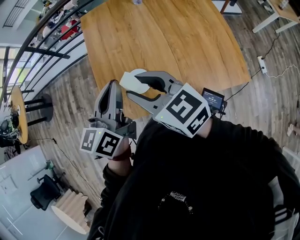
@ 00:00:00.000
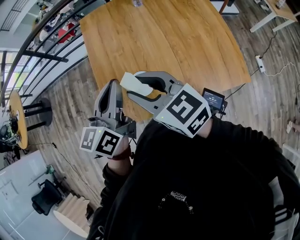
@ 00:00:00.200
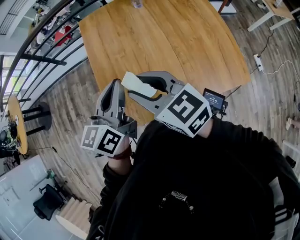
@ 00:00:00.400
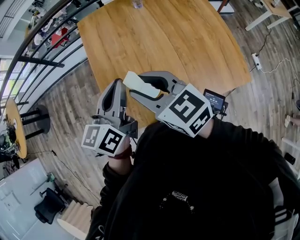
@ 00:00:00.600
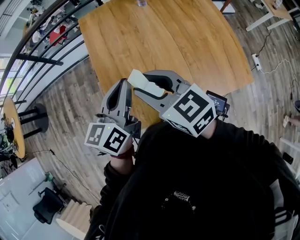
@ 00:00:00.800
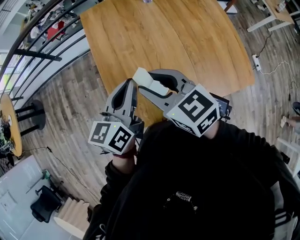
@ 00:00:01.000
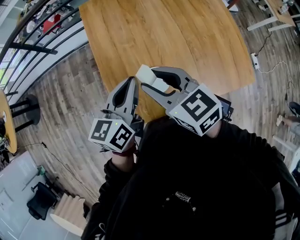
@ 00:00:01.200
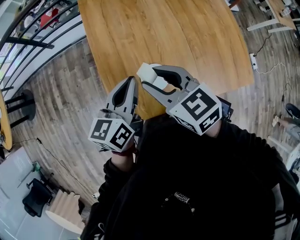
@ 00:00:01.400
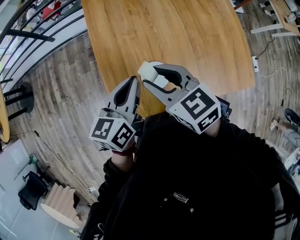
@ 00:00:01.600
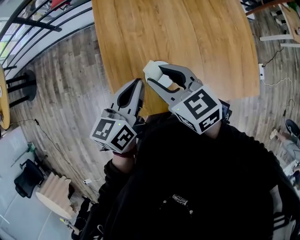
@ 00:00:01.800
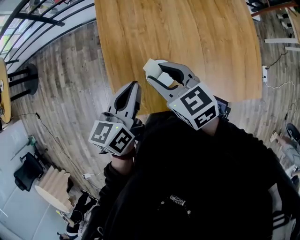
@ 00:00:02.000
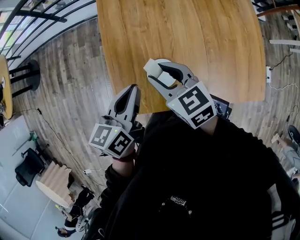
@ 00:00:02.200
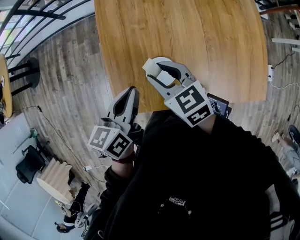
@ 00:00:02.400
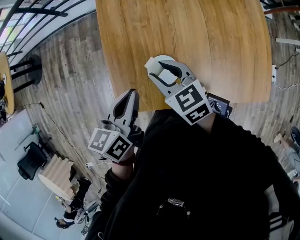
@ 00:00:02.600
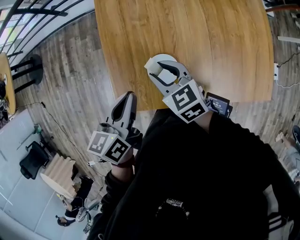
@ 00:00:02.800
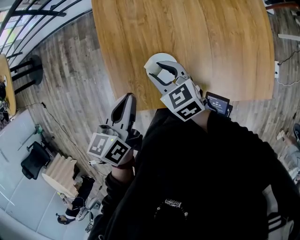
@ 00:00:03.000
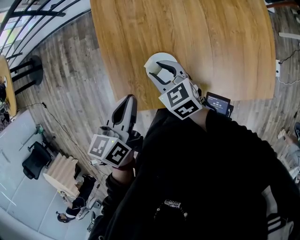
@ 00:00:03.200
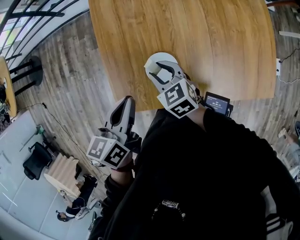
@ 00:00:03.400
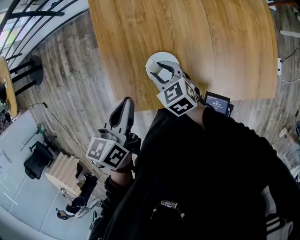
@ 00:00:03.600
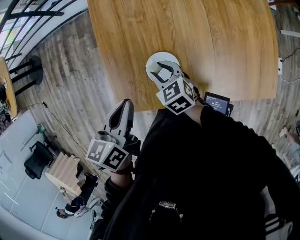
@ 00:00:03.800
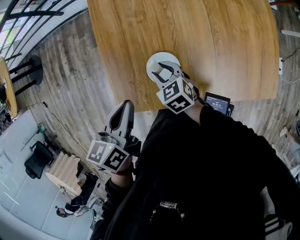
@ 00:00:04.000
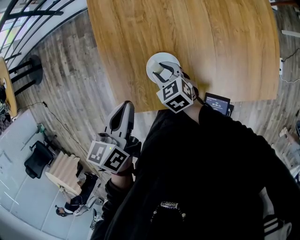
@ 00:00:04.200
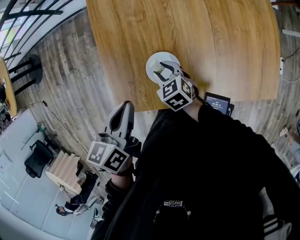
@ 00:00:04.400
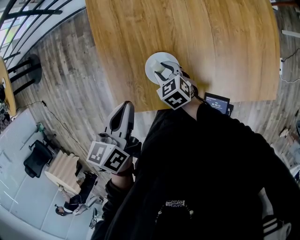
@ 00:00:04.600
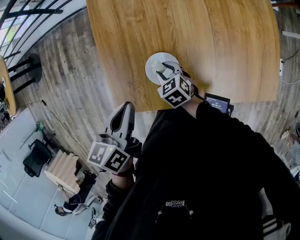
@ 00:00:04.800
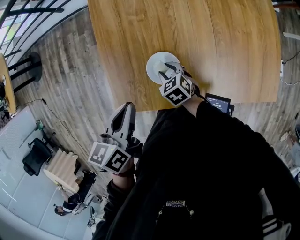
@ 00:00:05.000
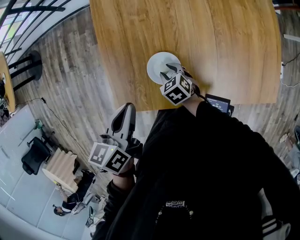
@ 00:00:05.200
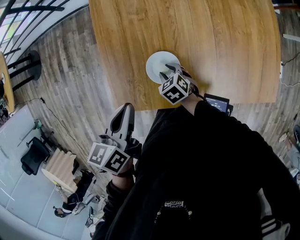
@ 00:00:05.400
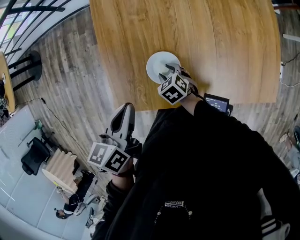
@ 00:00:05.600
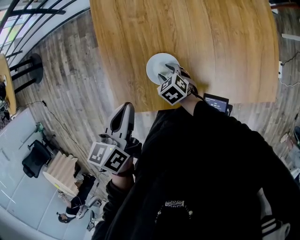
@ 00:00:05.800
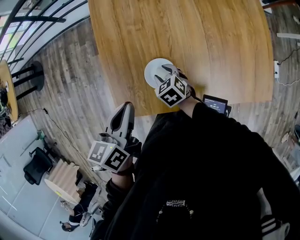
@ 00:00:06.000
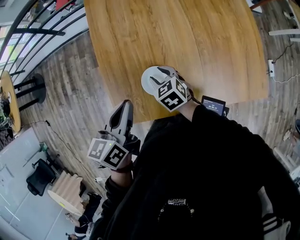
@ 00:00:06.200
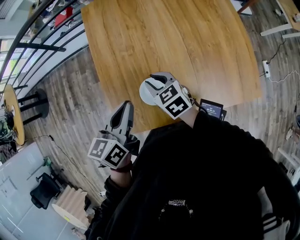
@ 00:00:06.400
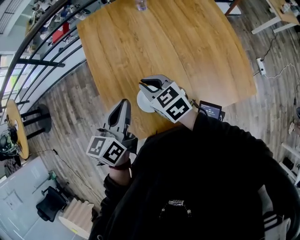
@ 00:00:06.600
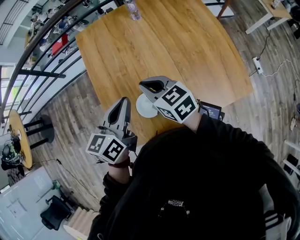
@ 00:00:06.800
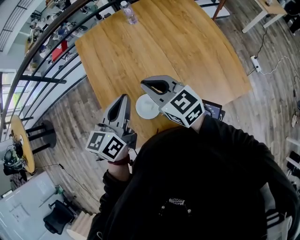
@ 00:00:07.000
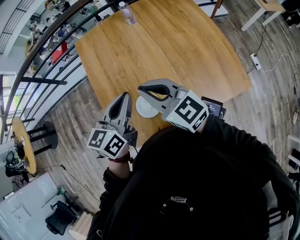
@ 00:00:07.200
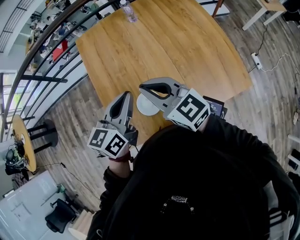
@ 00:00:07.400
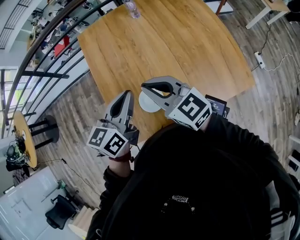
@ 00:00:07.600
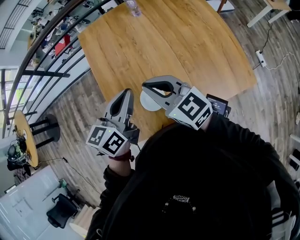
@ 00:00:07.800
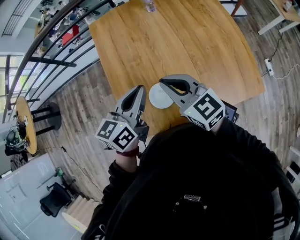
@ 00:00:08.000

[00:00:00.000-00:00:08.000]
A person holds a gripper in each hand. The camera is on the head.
00:00:00.000 to 00:00:01.600: The right gripper moves forward, downward and to the left, approximately 15 cm, while the left gripper goes roughly 15 cm downward, to the left and forward.
00:00:01.600 to 00:00:03.200: The right gripper shifts roughly 15 cm downward, while the left gripper goes some 5 cm downward.
00:00:03.200 to 00:00:04.800: The right gripper travels downward by approximately 15 cm.
00:00:04.800 to 00:00:06.400: The left gripper heads upward, covering approximately 5 cm, while the right gripper travels upward by roughly 15 cm.
00:00:06.400 to 00:00:08.000: The right gripper heads upward and to the right, covering roughly 20 cm, rotates about 30 degrees, and closes. The left gripper goes roughly 10 cm to the right.

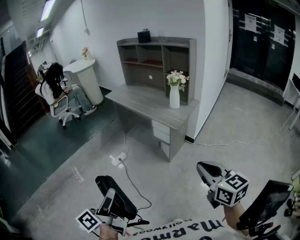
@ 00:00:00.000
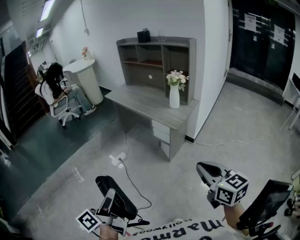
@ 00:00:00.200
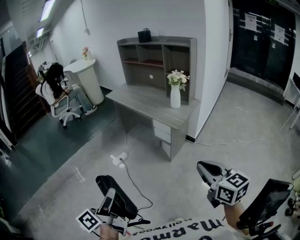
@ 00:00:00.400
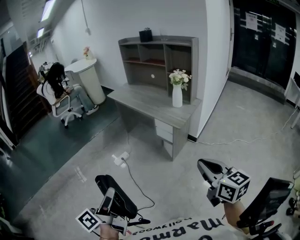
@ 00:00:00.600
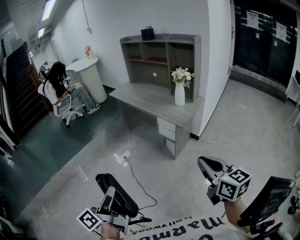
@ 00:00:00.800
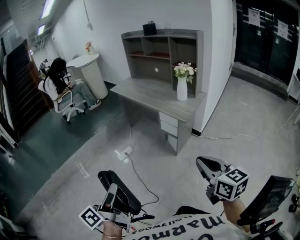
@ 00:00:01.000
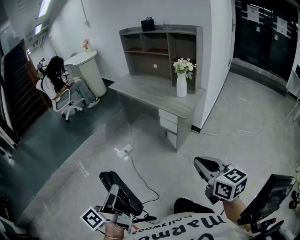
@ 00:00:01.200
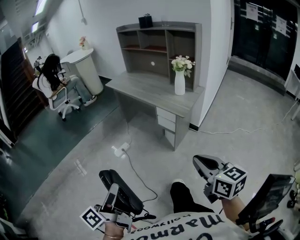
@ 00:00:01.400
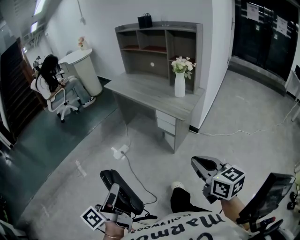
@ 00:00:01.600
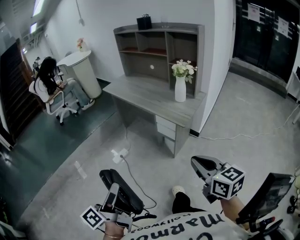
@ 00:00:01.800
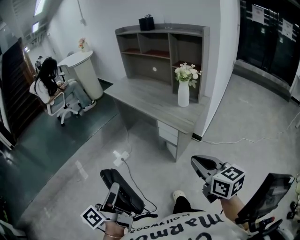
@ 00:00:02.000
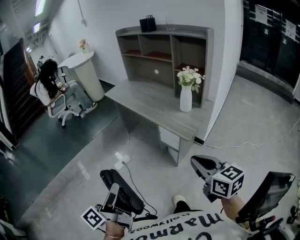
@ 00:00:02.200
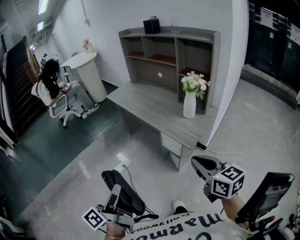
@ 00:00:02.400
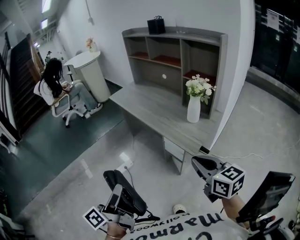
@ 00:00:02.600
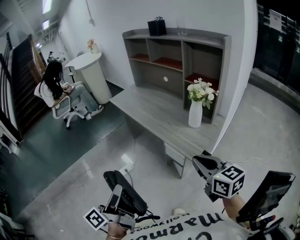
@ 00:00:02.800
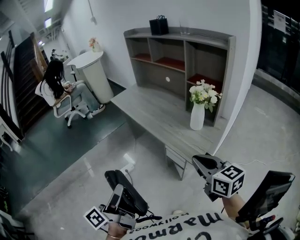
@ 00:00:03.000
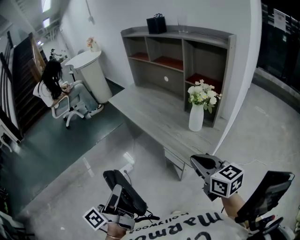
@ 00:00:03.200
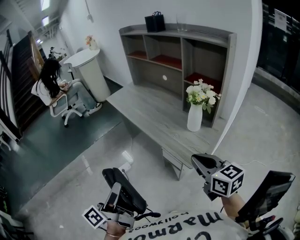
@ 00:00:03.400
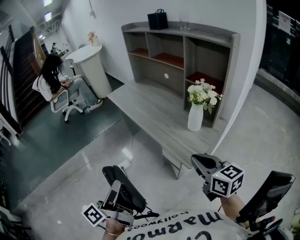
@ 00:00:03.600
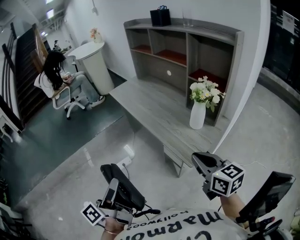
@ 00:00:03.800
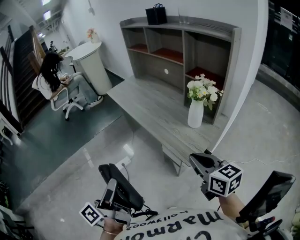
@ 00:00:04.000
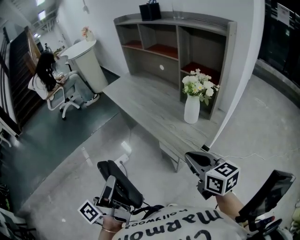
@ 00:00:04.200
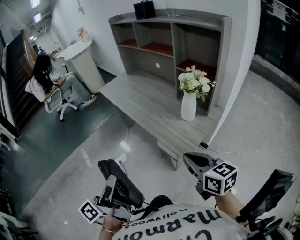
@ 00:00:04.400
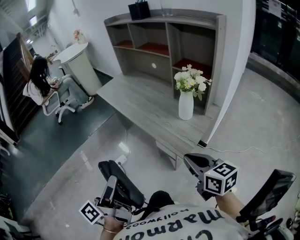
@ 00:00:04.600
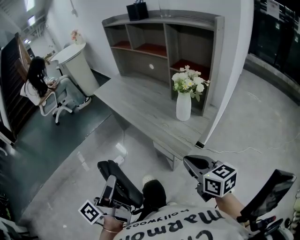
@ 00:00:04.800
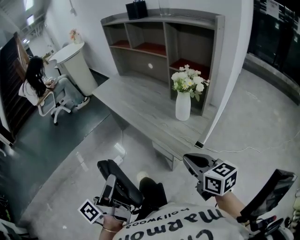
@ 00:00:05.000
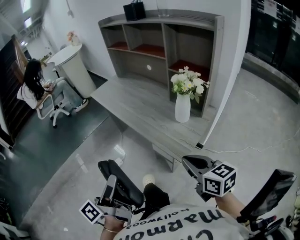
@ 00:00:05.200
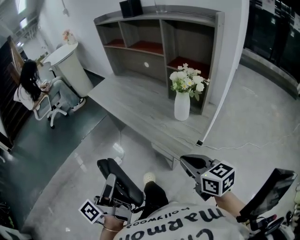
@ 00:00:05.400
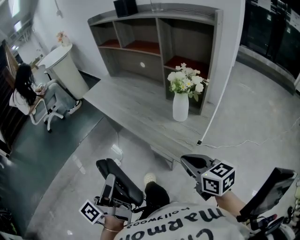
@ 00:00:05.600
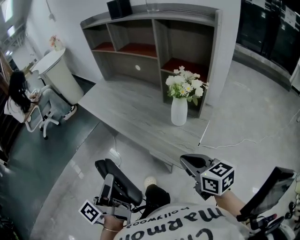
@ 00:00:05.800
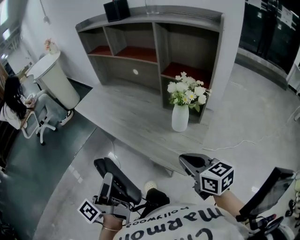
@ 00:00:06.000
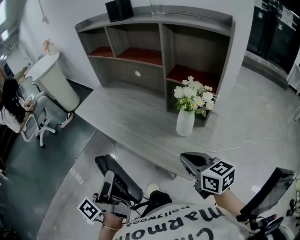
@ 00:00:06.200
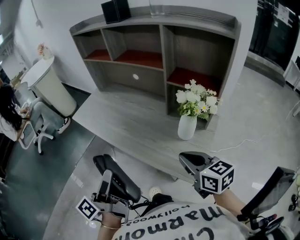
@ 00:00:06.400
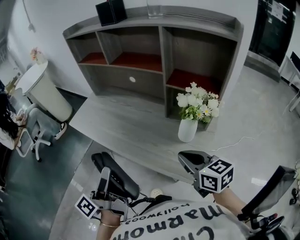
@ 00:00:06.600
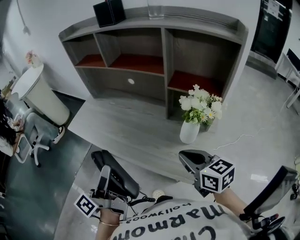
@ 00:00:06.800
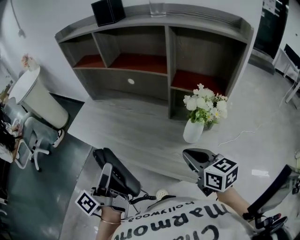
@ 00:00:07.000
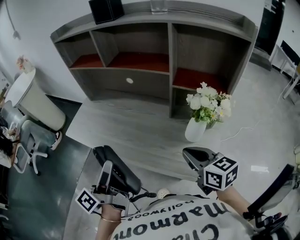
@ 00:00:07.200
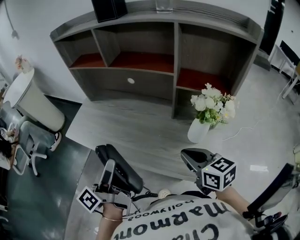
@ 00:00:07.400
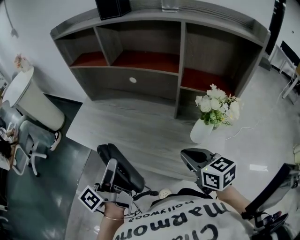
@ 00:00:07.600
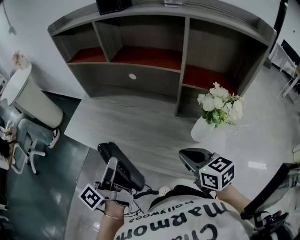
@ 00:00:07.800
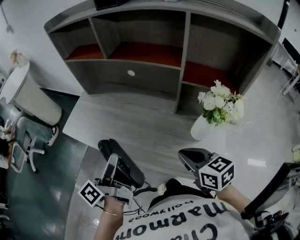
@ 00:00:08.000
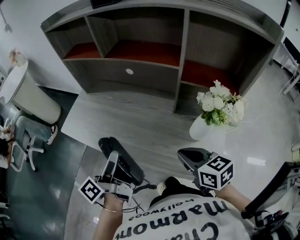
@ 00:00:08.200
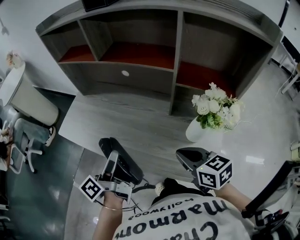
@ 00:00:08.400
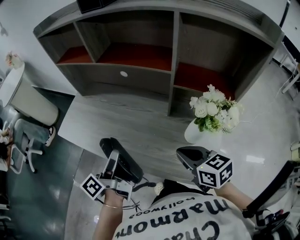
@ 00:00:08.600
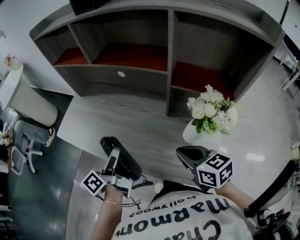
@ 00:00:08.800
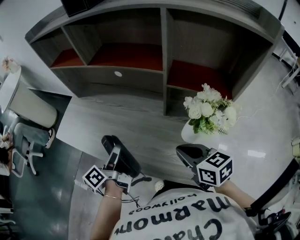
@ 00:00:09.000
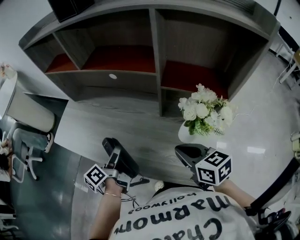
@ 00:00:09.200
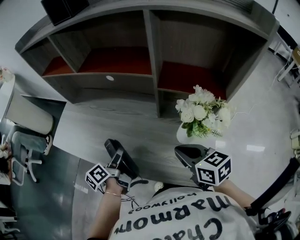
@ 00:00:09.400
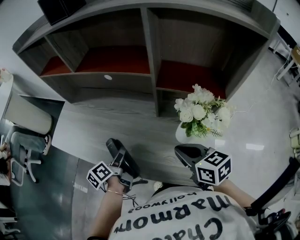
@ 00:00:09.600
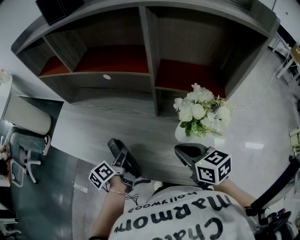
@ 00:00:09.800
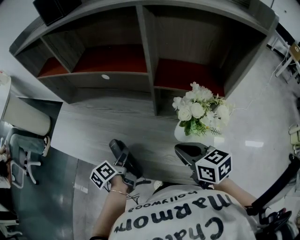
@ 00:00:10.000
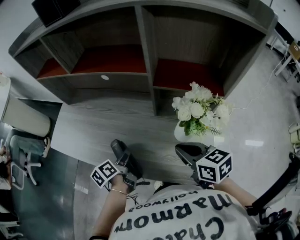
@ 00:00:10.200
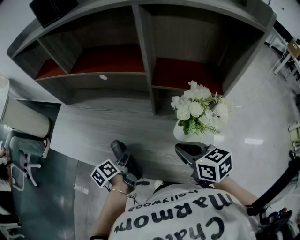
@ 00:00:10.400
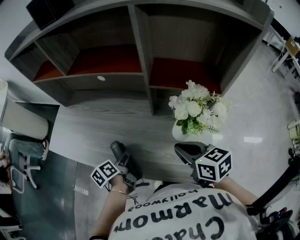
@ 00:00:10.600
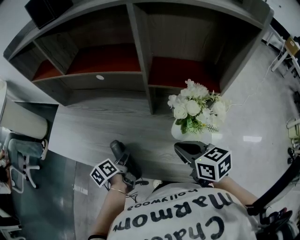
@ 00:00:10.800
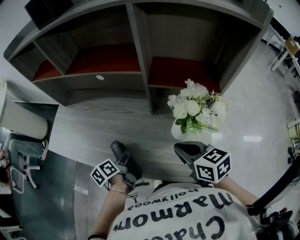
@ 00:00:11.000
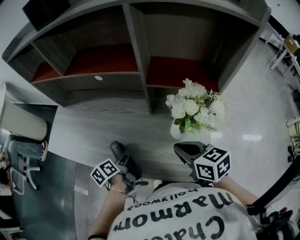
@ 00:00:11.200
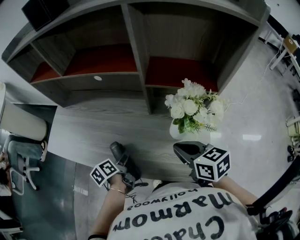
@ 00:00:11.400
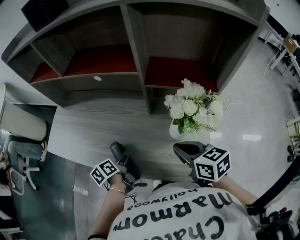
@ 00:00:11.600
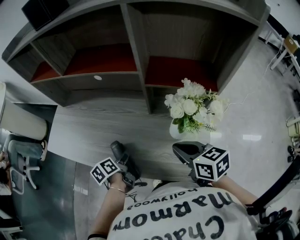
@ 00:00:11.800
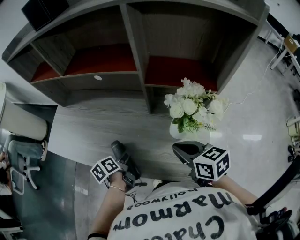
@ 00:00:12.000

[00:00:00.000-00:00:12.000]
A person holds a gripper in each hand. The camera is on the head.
00:00:00.000 to 00:00:01.600: The right gripper is displaced forward and to the left by about 10 cm; the left gripper shifts roughly 5 cm forward.
00:00:01.600 to 00:00:03.000: Both grippers travel together forward, some 30 cm.
00:00:03.000 to 00:00:04.400: The left gripper is displaced to the right by about 5 cm, while the right gripper changes place by roughly 5 cm.
00:00:04.400 to 00:00:06.000: The right gripper is displaced forward by some 10 cm, while the left gripper shifts roughly 15 cm forward.
00:00:06.000 to 00:00:07.600: The right gripper travels forward and to the left by some 20 cm. Meanwhile the left gripper travels forward by roughly 25 cm.
00:00:07.600 to 00:00:09.000: The left gripper moves downward, forward and to the right, roughly 15 cm, and turns by about 20 degrees. The right gripper ends up some 5 cm from where it was.
00:00:09.000 to 00:00:10.400: The left gripper goes about 10 cm downward, and swivels about 30 degrees.
00:00:10.400 to 00:00:12.000: The grippers make only small movements.

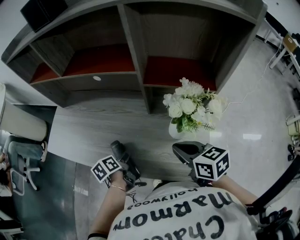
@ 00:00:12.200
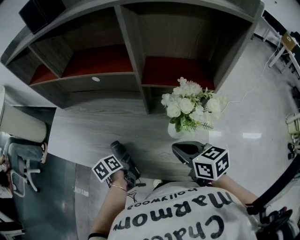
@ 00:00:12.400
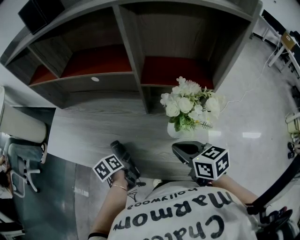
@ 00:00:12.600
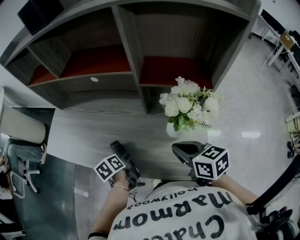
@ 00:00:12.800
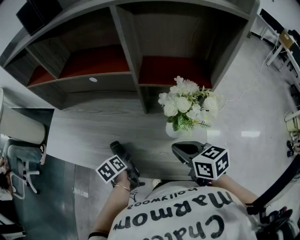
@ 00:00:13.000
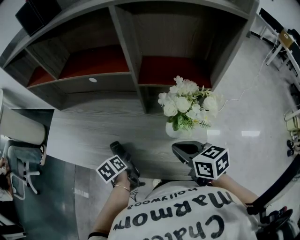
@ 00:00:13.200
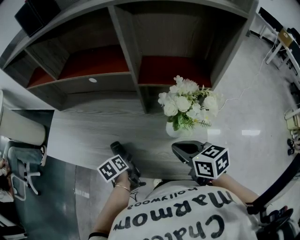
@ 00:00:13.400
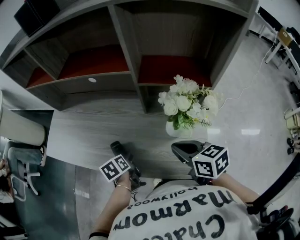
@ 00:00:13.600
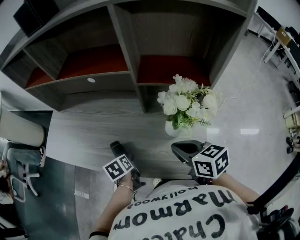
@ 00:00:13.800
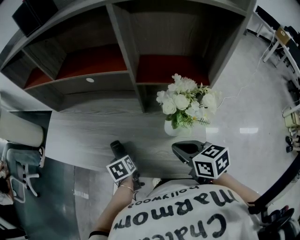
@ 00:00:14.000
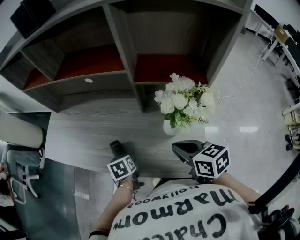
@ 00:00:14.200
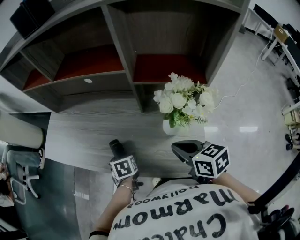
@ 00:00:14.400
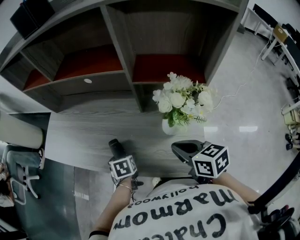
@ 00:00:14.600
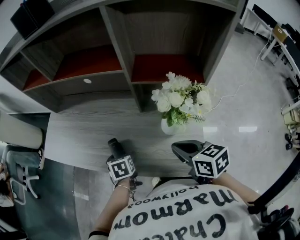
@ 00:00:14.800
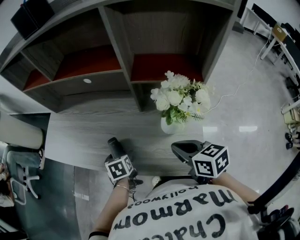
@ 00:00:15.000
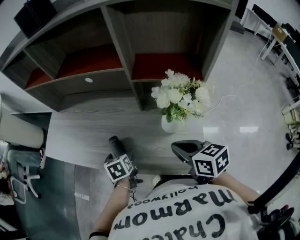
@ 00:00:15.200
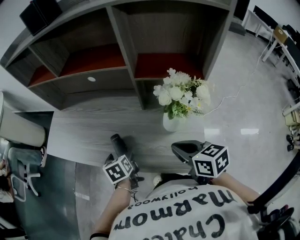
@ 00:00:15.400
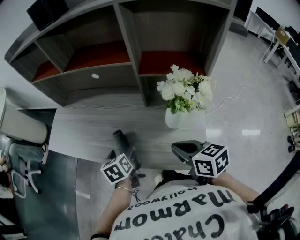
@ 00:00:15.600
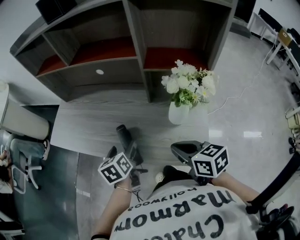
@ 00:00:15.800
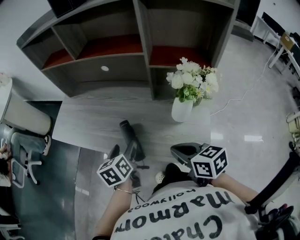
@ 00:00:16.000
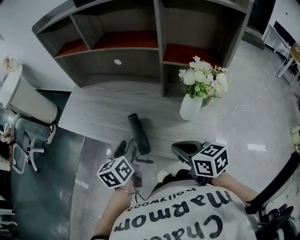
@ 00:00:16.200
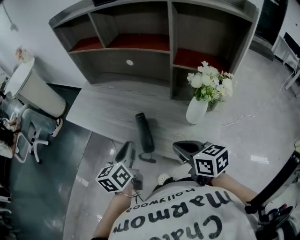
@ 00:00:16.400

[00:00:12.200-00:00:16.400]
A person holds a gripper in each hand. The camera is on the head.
00:00:12.200 to 00:00:13.600: The grippers make only small movements.
00:00:13.600 to 00:00:15.000: The left gripper swivels roughly 20 degrees.
00:00:15.000 to 00:00:16.400: The left gripper travels upward, backward and to the left by roughly 20 cm, points its fingers about 40 degrees further upward, and closes its fingers, while the right gripper moves to the left, roughly 10 cm.
